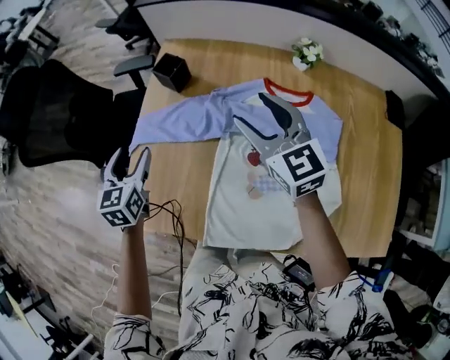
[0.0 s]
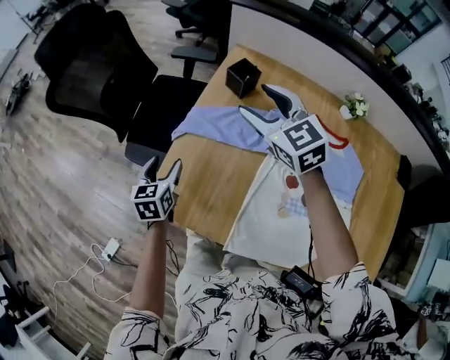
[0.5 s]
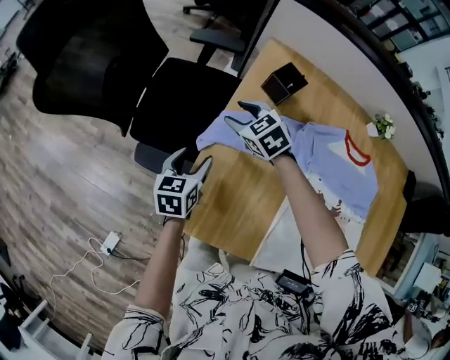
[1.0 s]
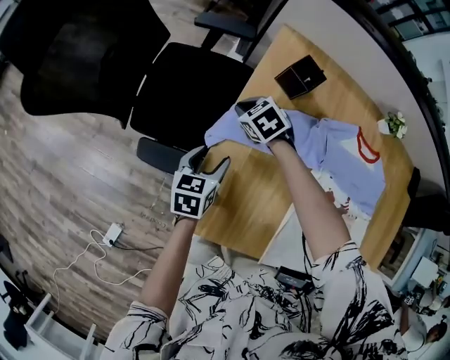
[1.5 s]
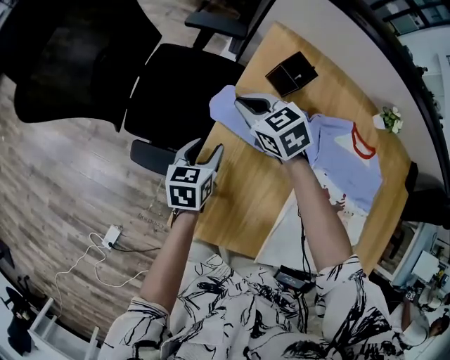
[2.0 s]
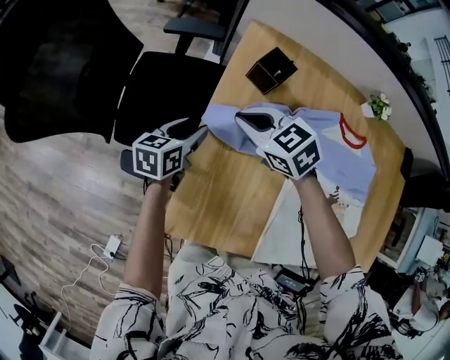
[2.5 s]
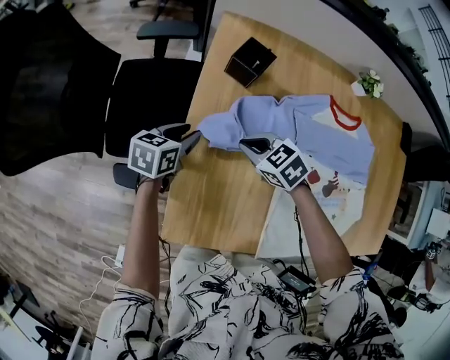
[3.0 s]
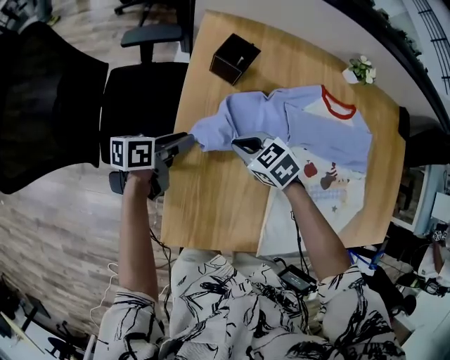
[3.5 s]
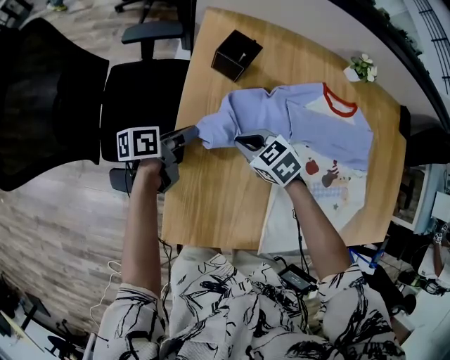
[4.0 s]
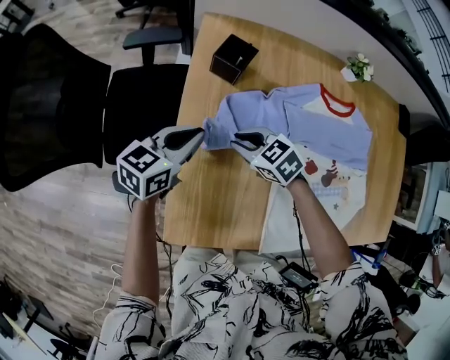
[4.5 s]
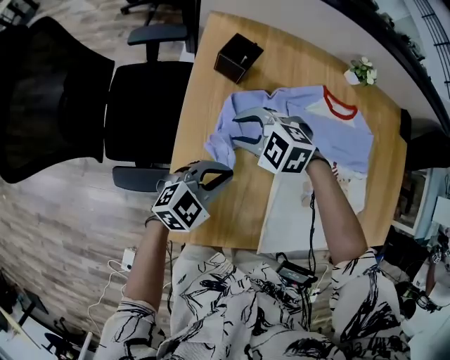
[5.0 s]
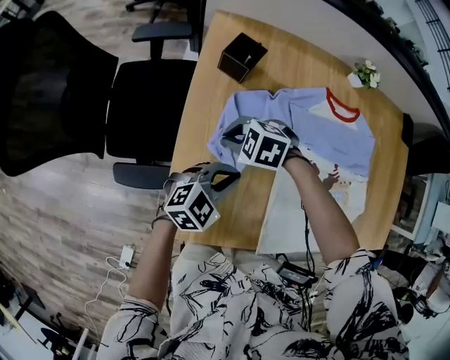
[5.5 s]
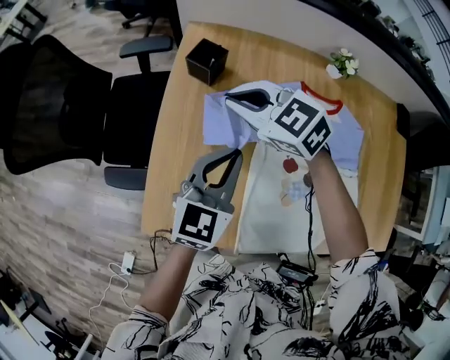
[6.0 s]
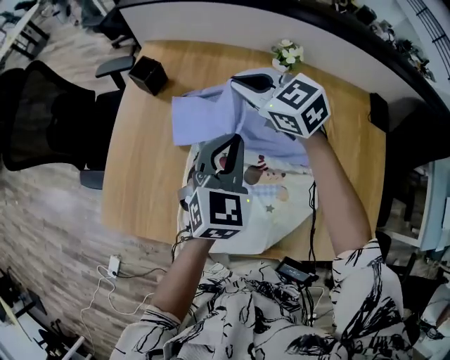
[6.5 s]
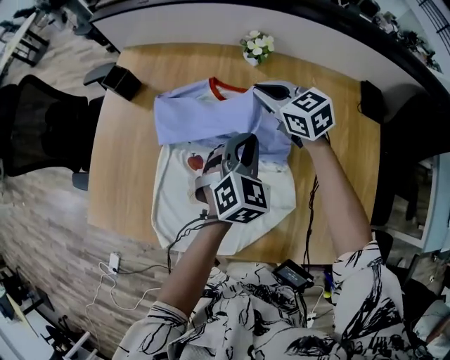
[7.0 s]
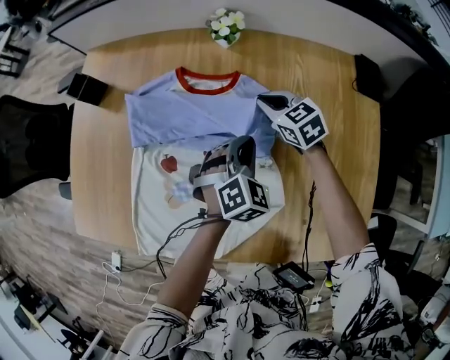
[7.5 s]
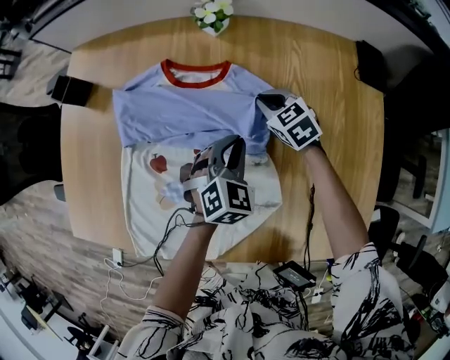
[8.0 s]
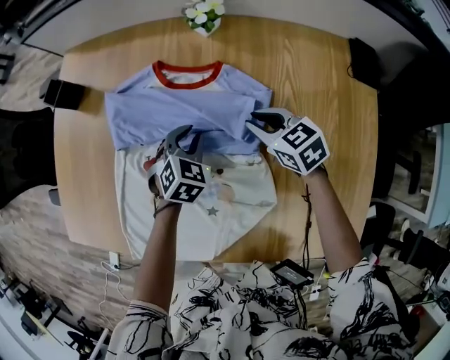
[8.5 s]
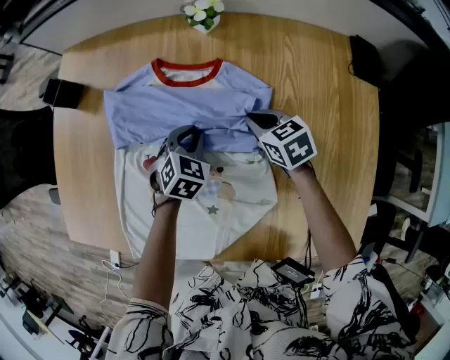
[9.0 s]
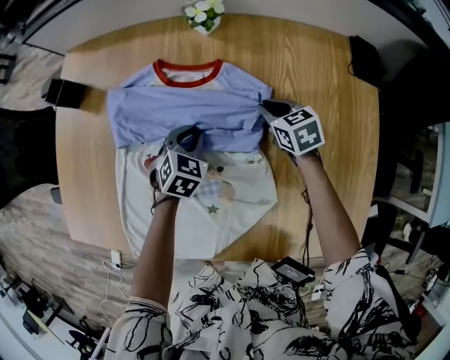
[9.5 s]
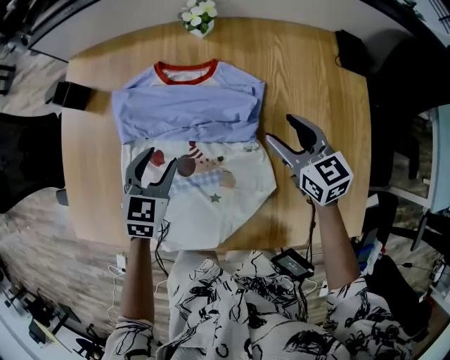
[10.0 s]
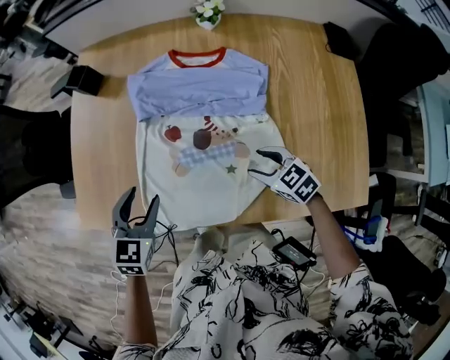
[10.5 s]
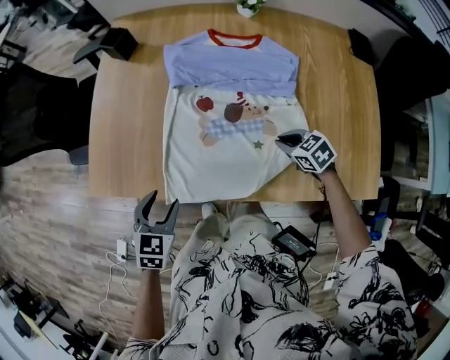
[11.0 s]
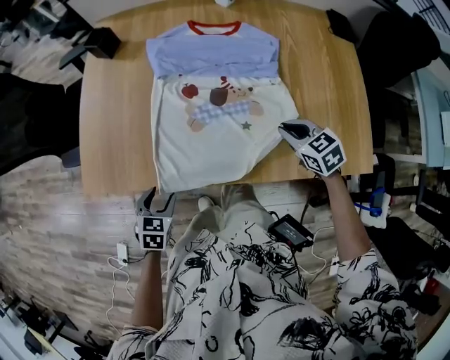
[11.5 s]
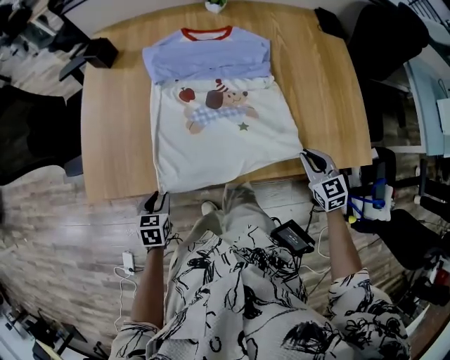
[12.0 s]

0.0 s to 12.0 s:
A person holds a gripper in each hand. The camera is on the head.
0.0 to 2.0 s: The right gripper goes approximately 50 cm to the left, forward and downward, tips its fingers downward by roughly 30 degrees, and closes up, while the left gripper moves downward, to the left and forward, approximately 20 cm, and turns by approximately 30 degrees.
2.0 to 4.0 s: The left gripper changes place by some 10 cm, turns by roughly 50 degrees, and closes up, while the right gripper shifts by about 20 cm.
4.0 to 6.0 s: The left gripper moves upward, approximately 20 cm, and rotates around the line of its fingers by roughly 70 degrees, clockwise from behind, while the right gripper goes up and down, some 20 cm each way, reversing 2 times, turns by about 30 degrees, and opens, then closes once more.
6.0 to 8.0 s: The pair of grippers is taken to the right, approximately 50 cm. The left gripper turns by approximately 30 degrees; the right gripper travels downward by roughly 25 cm, and turns by some 30 degrees.
8.0 to 10.0 s: The right gripper moves backward and upward, about 20 cm, changes its angle by approximately 30 degrees, and opens up; the left gripper is displaced to the left by roughly 15 cm, and opens up.
10.0 to 12.0 s: The right gripper goes some 30 cm backward, changes its angle by roughly 20 degrees, and closes, while the left gripper shifts about 40 cm to the left and backward, and turns by approximately 20 degrees.

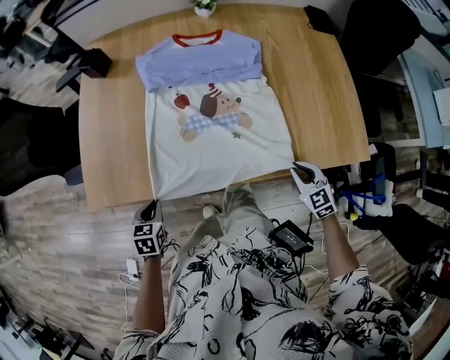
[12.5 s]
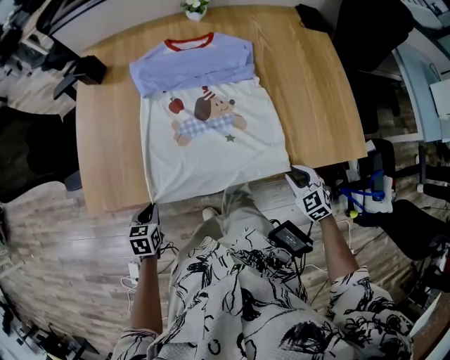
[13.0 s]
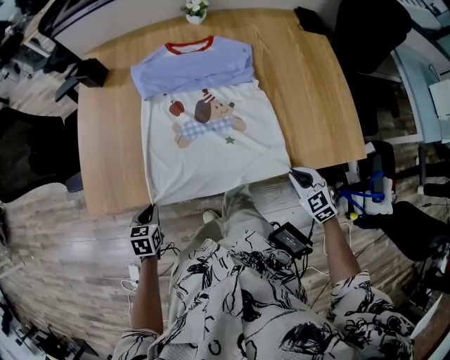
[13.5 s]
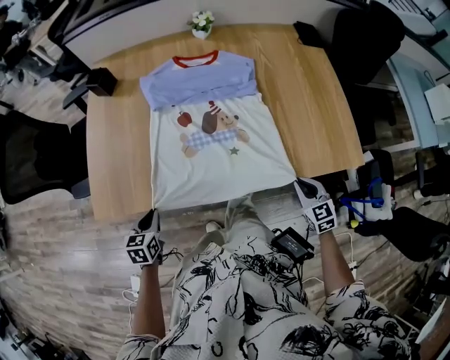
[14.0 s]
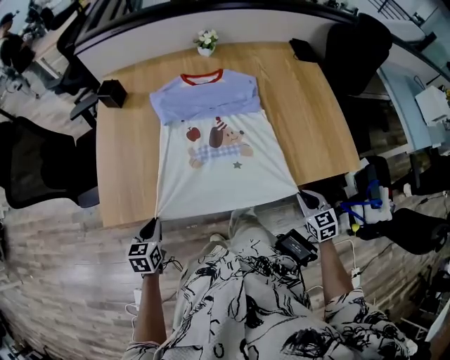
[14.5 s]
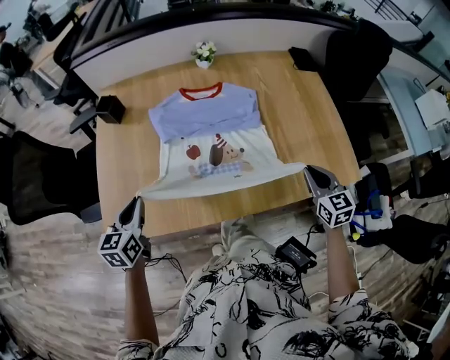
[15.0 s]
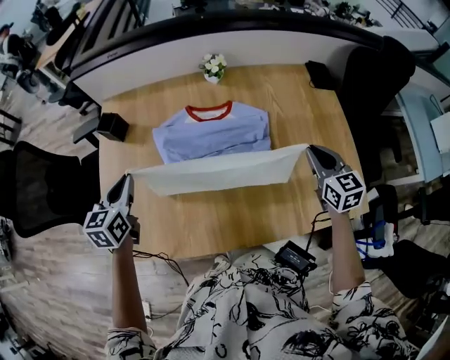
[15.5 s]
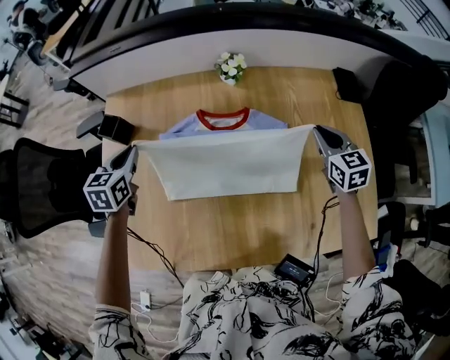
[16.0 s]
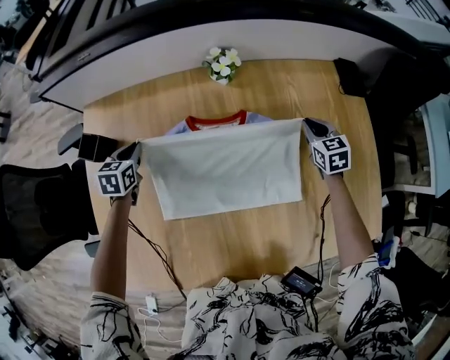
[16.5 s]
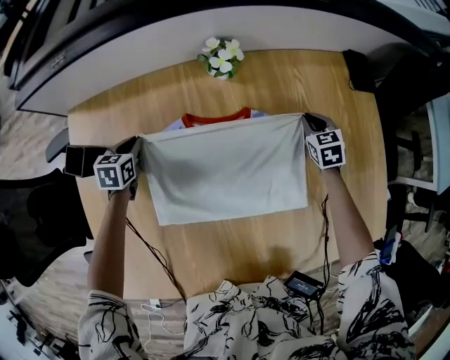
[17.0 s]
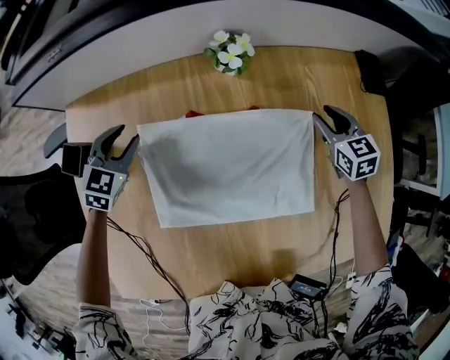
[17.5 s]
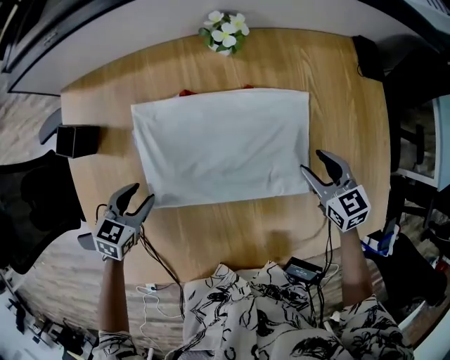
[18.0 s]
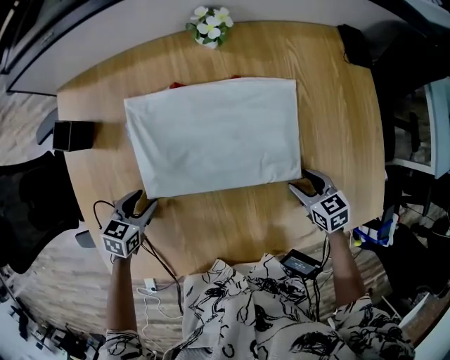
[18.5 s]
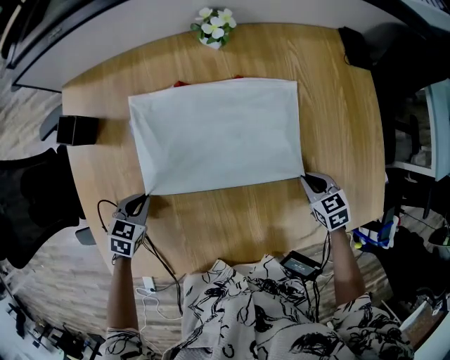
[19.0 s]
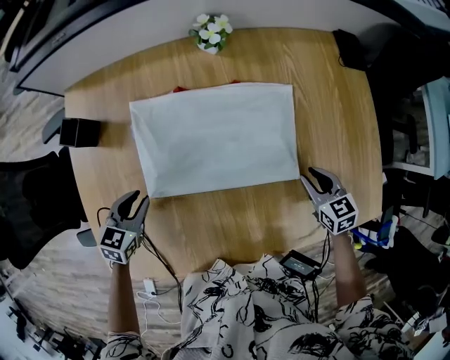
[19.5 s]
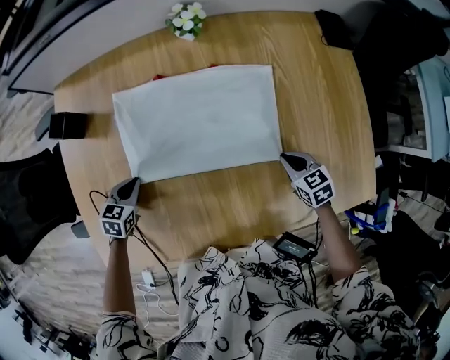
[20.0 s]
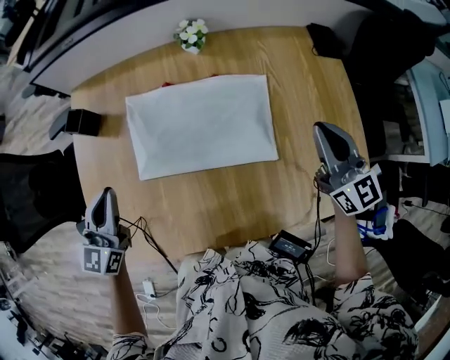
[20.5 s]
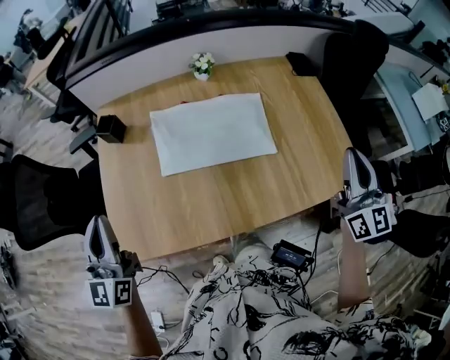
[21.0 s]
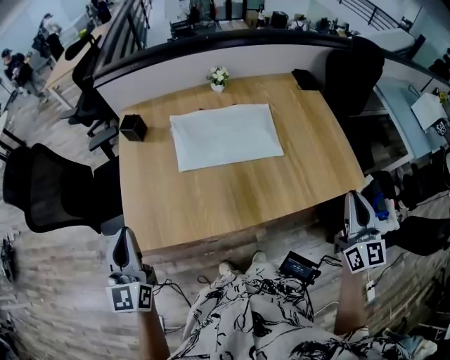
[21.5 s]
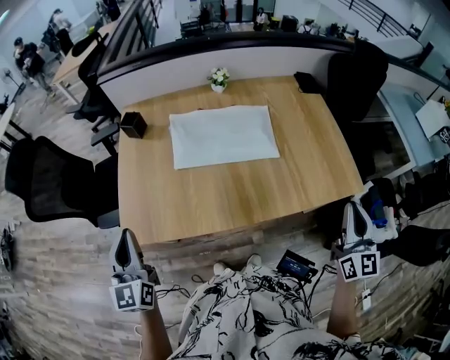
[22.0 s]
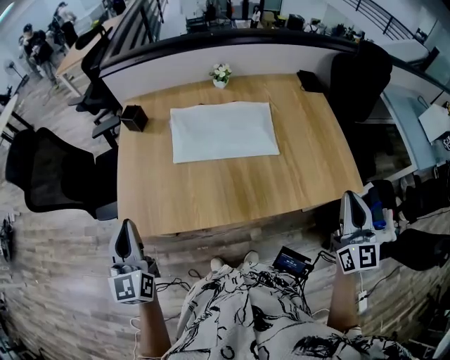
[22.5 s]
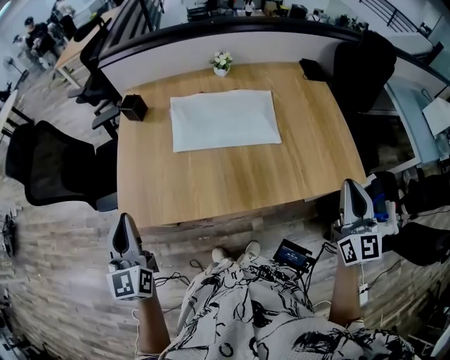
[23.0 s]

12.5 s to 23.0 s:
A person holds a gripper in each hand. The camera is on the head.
12.5 to 14.5 s: The left gripper heads upward, covering roughly 5 cm; the right gripper heads backward, covering approximately 5 cm.
14.5 to 16.5 s: Both grippers are carried forward, about 60 cm.
16.5 to 19.0 s: Both grippers travel together backward, roughly 25 cm. The right gripper changes its angle by about 20 degrees, and opens, then closes once more. The left gripper changes its angle by approximately 20 degrees, and opens, then closes once more.
19.0 to 21.0 s: The right gripper swings up and down, approximately 40 cm each way, with 2 reversals, and tips its fingers upward by about 60 degrees. Meanwhile the left gripper goes up and down, roughly 40 cm each way, reversing 2 times, and angles its fingers upward, by approximately 60 degrees.
21.0 to 23.0 s: The grippers both shift backward by roughly 15 cm.

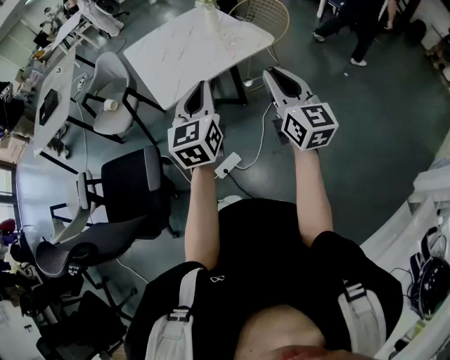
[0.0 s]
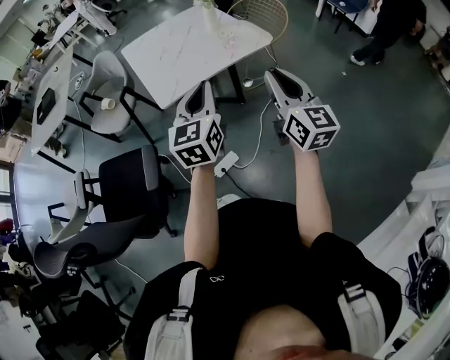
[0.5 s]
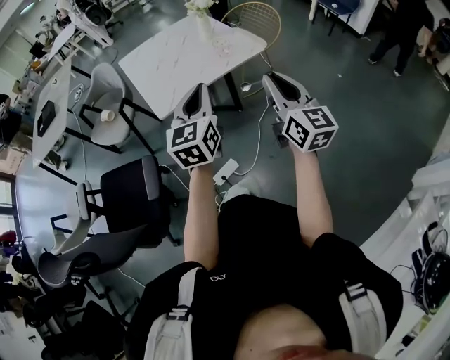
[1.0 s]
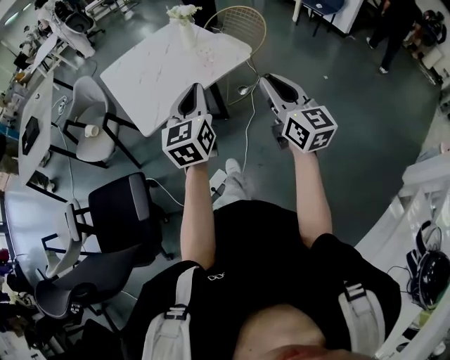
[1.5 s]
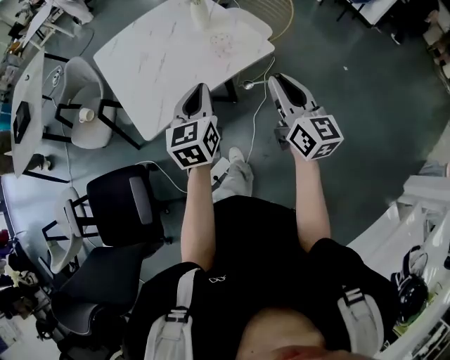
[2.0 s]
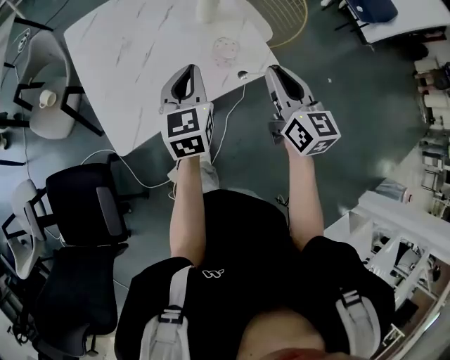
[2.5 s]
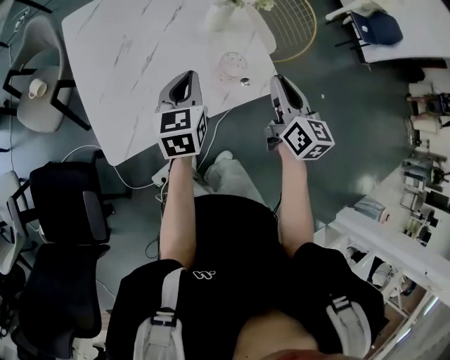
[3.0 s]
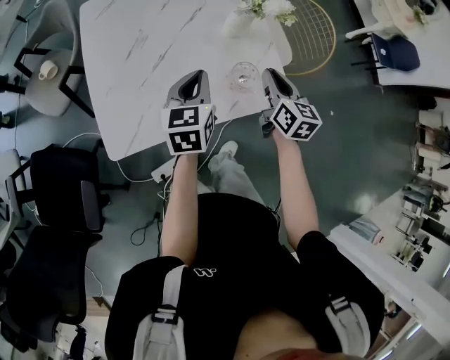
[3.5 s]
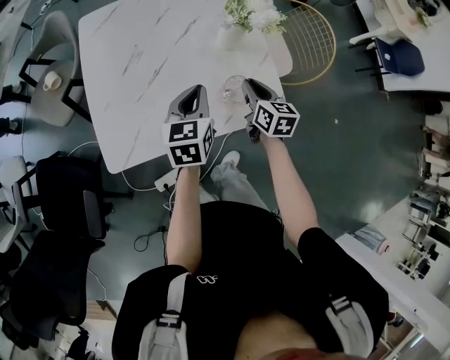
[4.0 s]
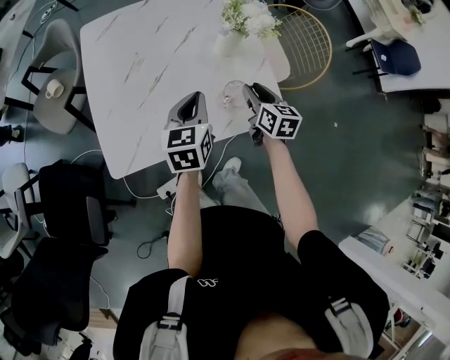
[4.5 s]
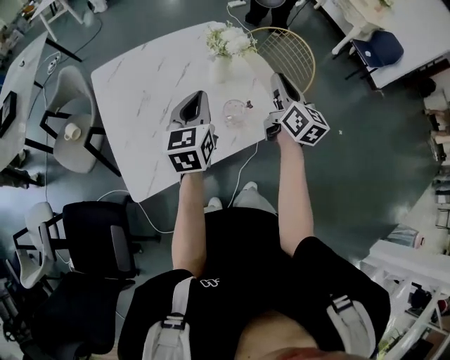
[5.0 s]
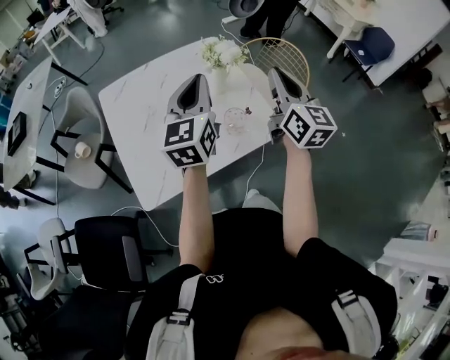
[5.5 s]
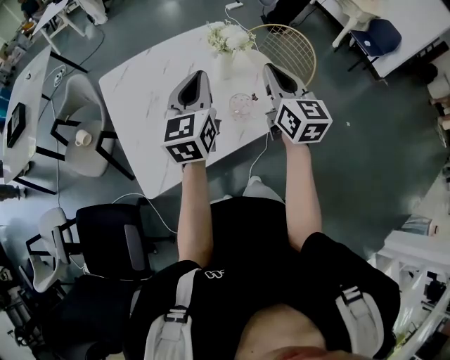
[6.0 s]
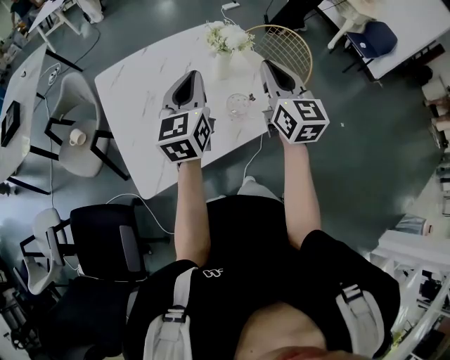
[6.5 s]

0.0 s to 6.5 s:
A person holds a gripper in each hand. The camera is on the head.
0.0 to 2.0 s: The left gripper goes approximately 25 cm forward and downward. Meanwhile the right gripper heads forward, covering some 20 cm.
2.0 to 4.5 s: The right gripper moves forward and downward, approximately 40 cm, tips its fingers downward by approximately 30 degrees, and opens; the left gripper moves forward and downward, about 25 cm.
4.5 to 6.5 s: Both grippers travel together upward, roughly 20 cm. The right gripper turns by roughly 30 degrees, and closes up. The left gripper changes its angle by approximately 20 degrees.
